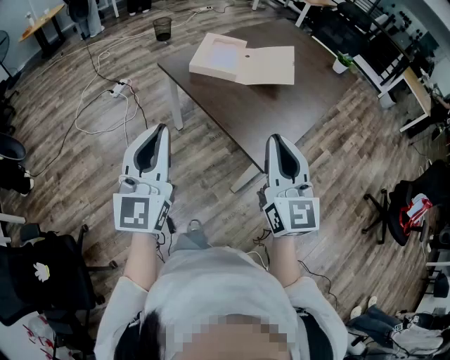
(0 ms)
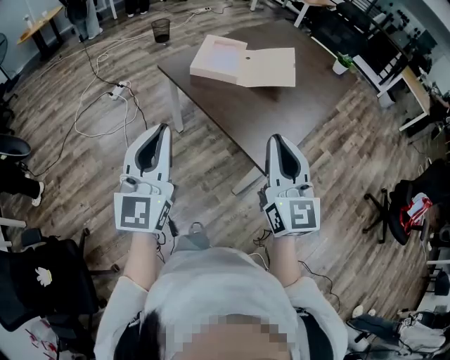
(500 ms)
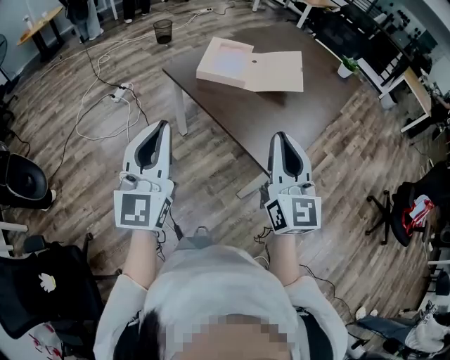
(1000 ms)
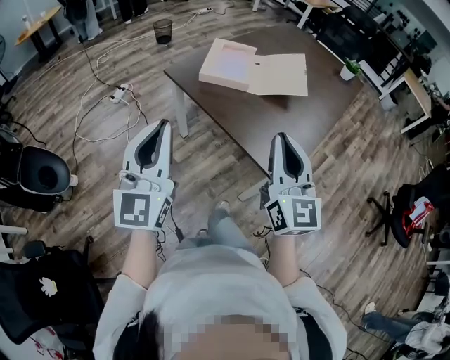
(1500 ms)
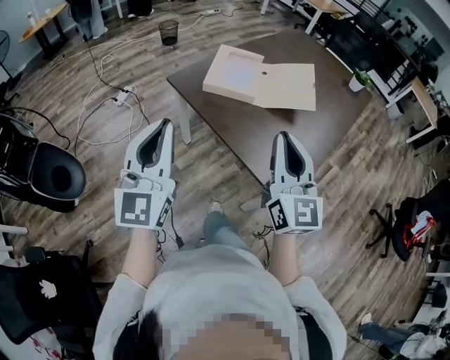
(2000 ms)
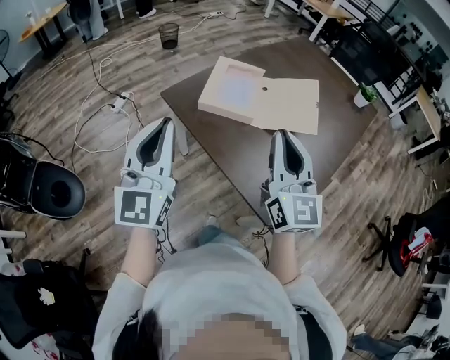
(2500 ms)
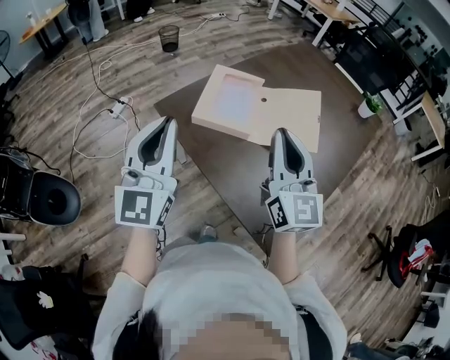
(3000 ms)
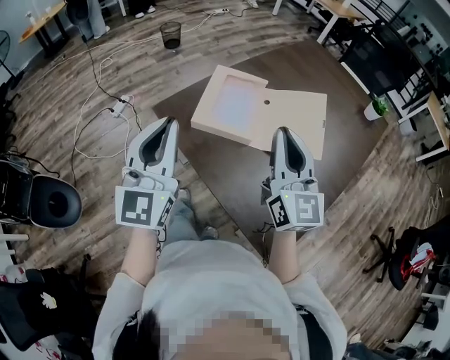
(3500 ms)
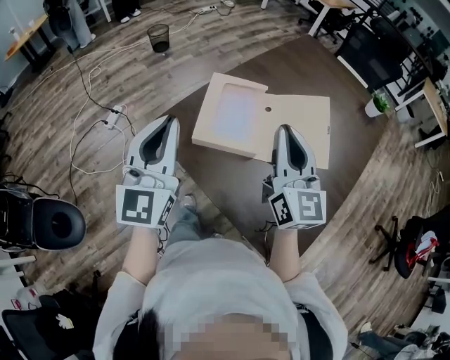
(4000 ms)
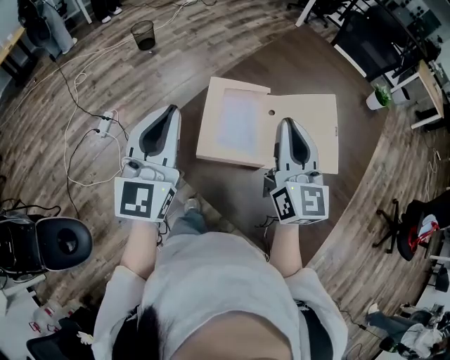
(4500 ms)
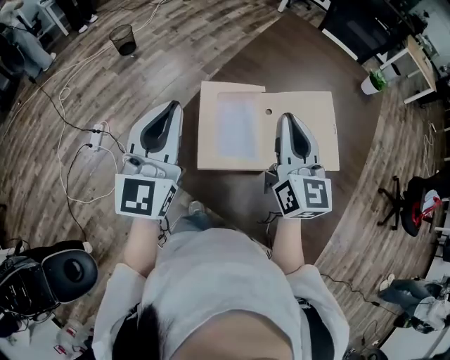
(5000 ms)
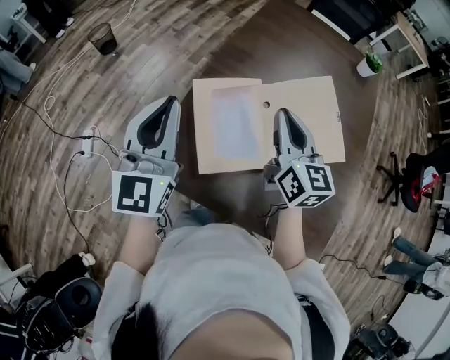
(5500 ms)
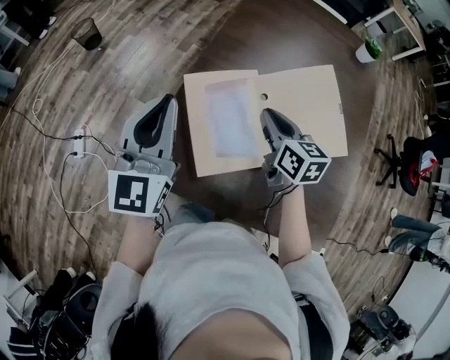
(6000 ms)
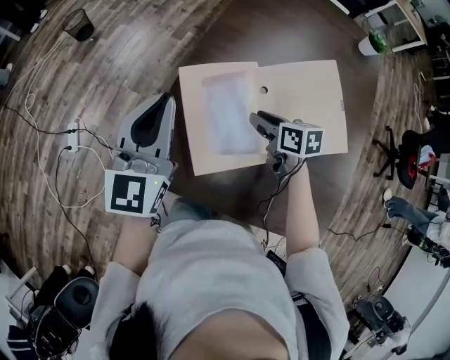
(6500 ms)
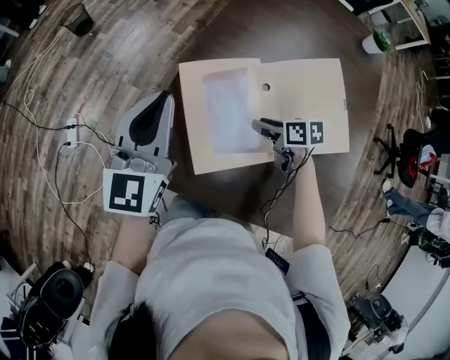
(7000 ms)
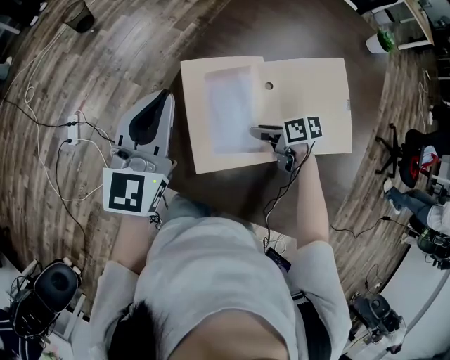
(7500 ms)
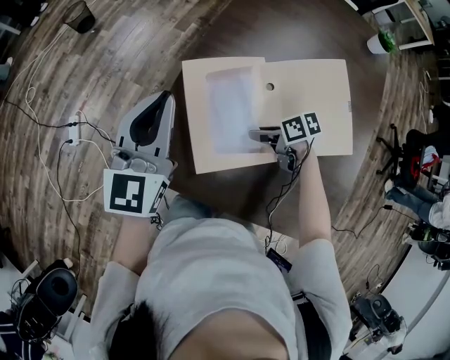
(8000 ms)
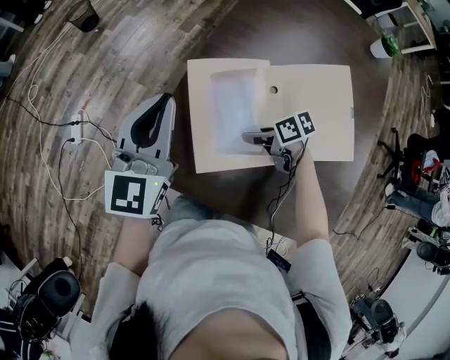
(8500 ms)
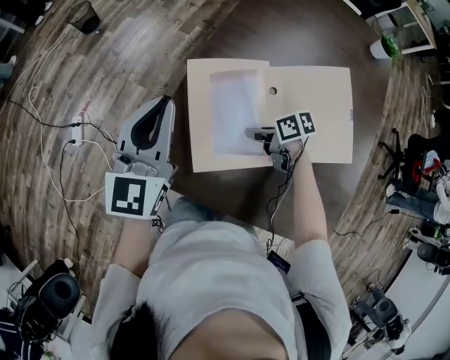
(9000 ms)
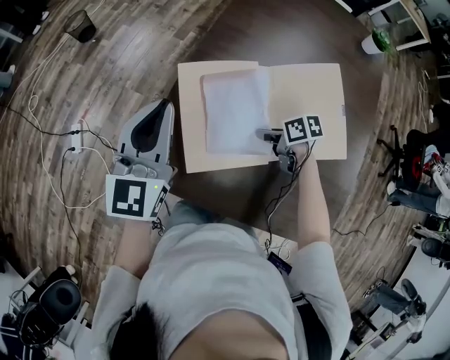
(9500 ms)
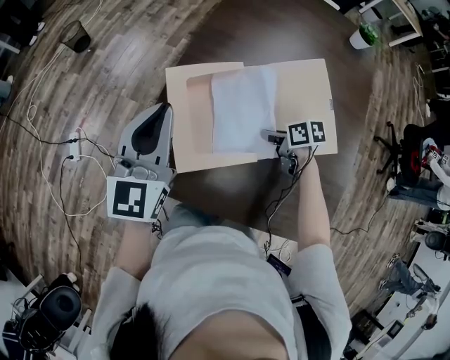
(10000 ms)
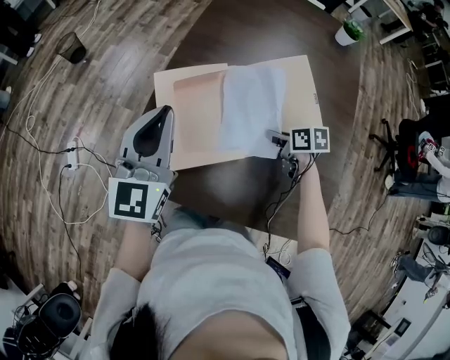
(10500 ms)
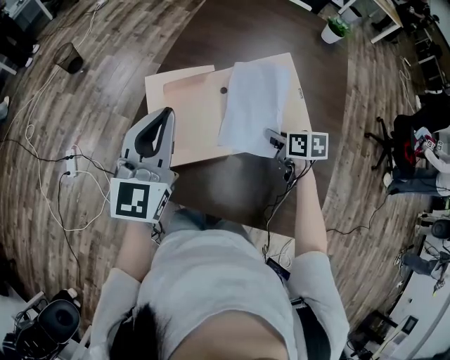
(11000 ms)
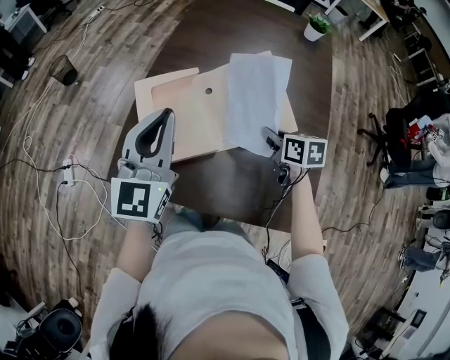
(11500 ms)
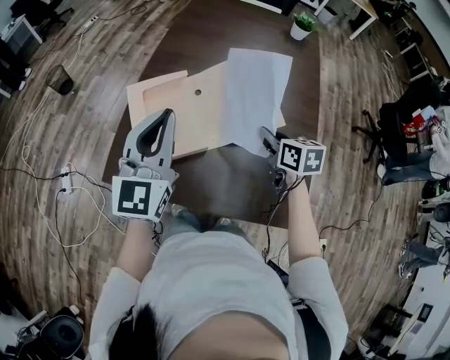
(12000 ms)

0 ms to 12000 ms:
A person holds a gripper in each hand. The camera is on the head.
0 ms to 2000 ms: The left gripper is displaced forward and to the left by roughly 15 cm. The right gripper travels forward by about 15 cm.
2000 ms to 4000 ms: The two grippers go some 35 cm forward.
4000 ms to 6000 ms: The right gripper heads forward and downward, covering some 30 cm, and points its fingers about 30 degrees further downward. The left gripper travels forward by approximately 30 cm, and rotates approximately 30 degrees.
6000 ms to 8000 ms: The left gripper moves about 5 cm. Meanwhile the right gripper heads downward, covering roughly 20 cm, turns by approximately 50 degrees, and opens up.
8000 ms to 10000 ms: The right gripper goes roughly 5 cm to the right, and closes.
10000 ms to 12000 ms: The left gripper changes place by approximately 20 cm. Meanwhile the right gripper moves upward, some 15 cm, and swivels roughly 40 degrees.

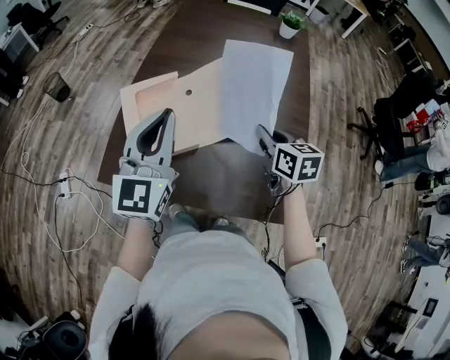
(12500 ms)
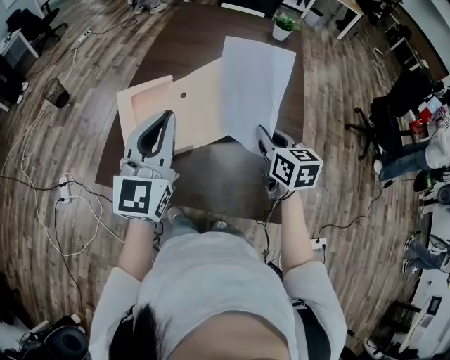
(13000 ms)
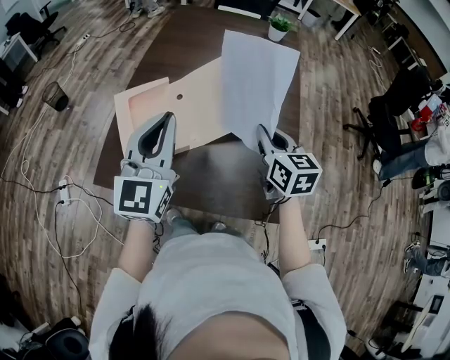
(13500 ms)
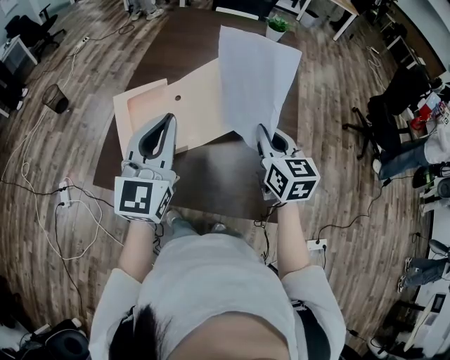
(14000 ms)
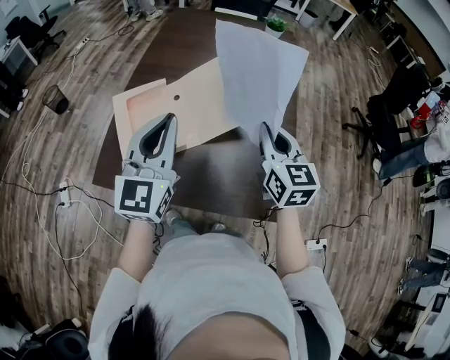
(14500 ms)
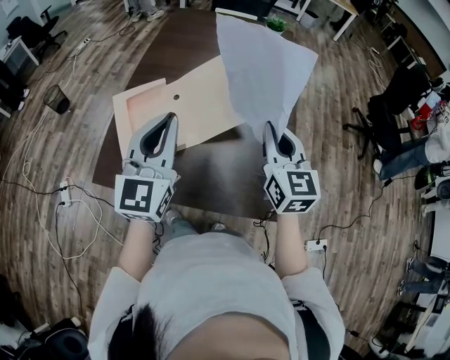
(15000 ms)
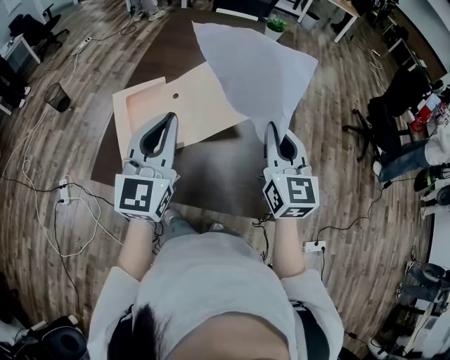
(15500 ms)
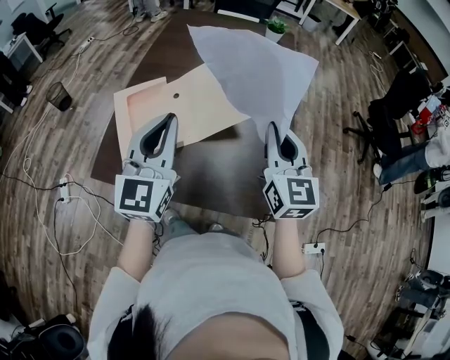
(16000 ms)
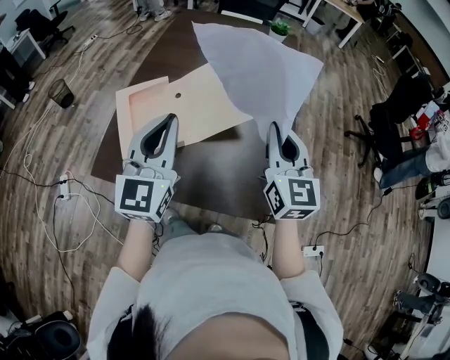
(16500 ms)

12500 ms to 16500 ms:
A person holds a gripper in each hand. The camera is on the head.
12500 ms to 14500 ms: The right gripper is displaced upward by roughly 10 cm, and turns by about 30 degrees; the left gripper shifts approximately 5 cm to the right.
14500 ms to 16500 ms: The right gripper ends up approximately 5 cm from where it was.

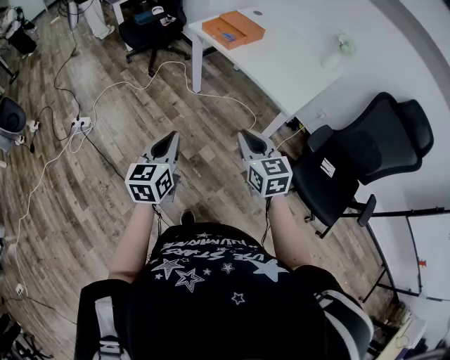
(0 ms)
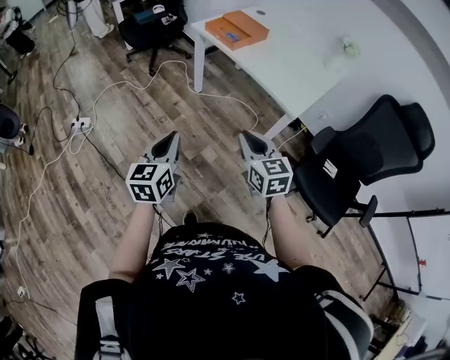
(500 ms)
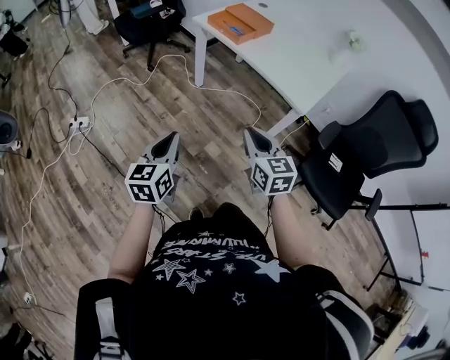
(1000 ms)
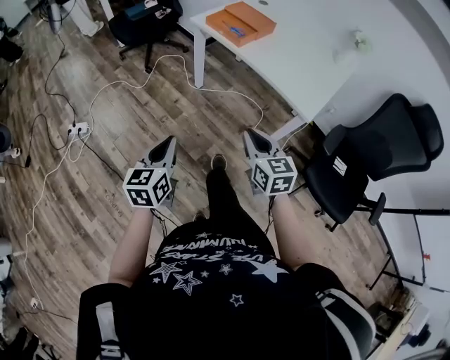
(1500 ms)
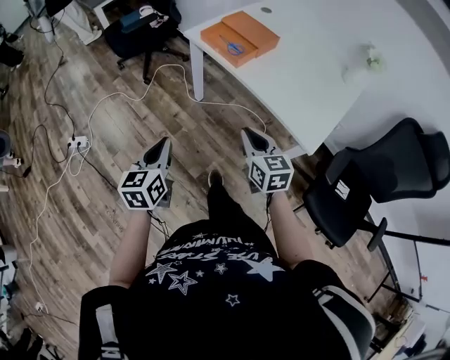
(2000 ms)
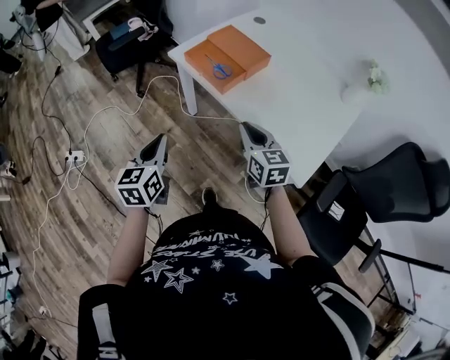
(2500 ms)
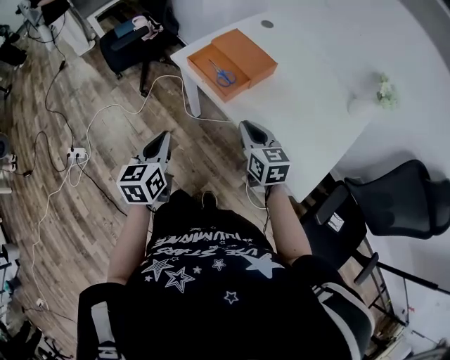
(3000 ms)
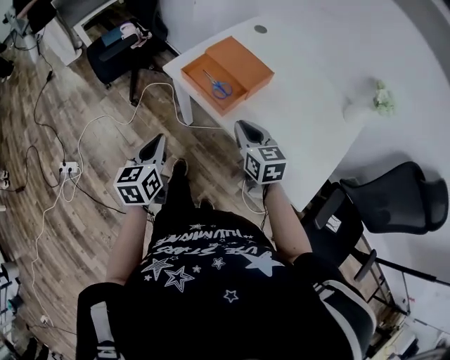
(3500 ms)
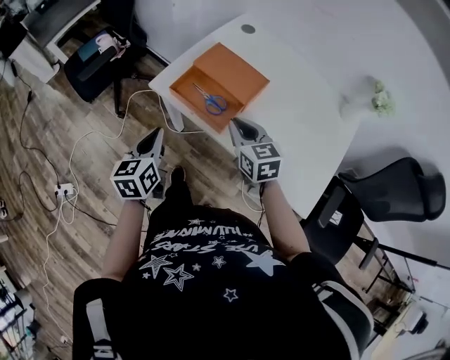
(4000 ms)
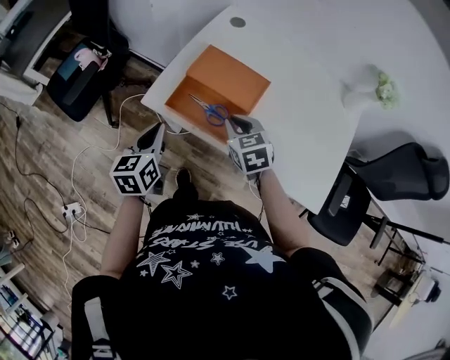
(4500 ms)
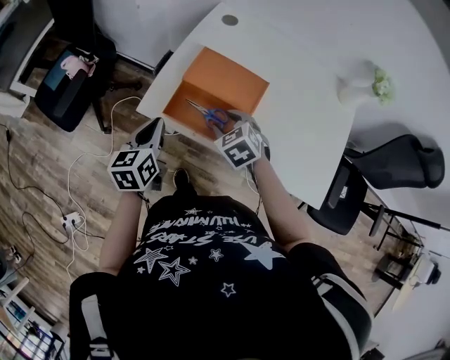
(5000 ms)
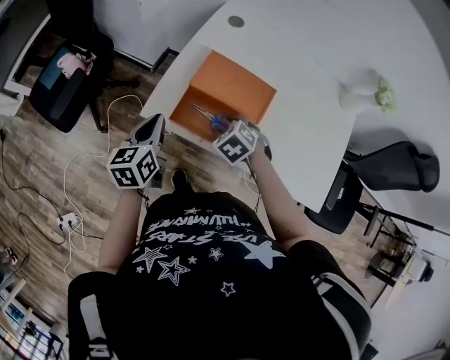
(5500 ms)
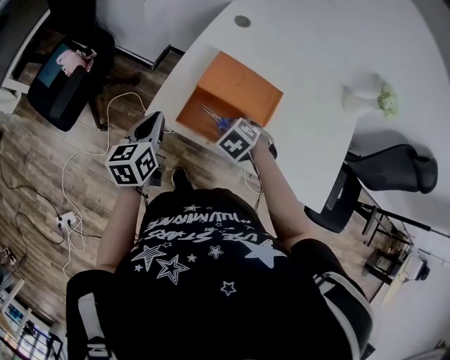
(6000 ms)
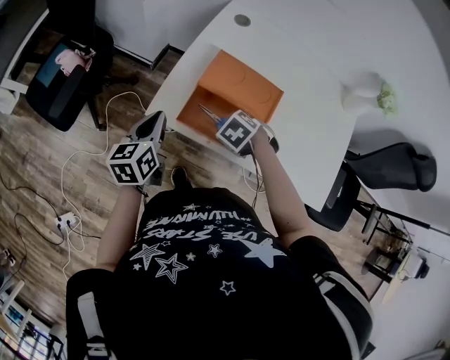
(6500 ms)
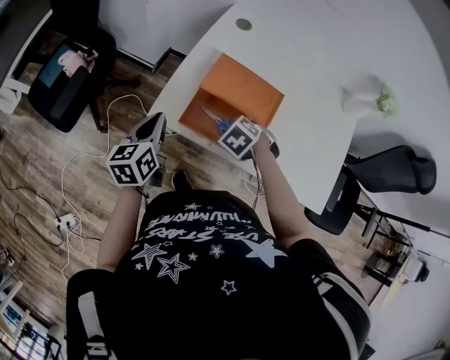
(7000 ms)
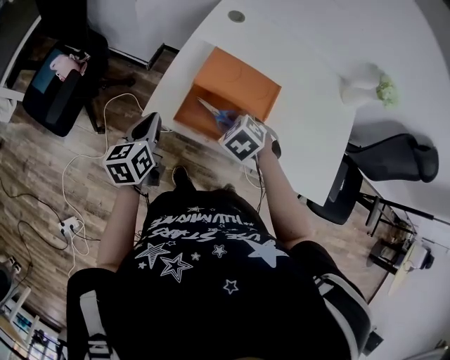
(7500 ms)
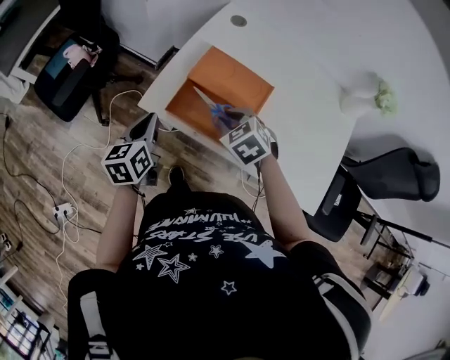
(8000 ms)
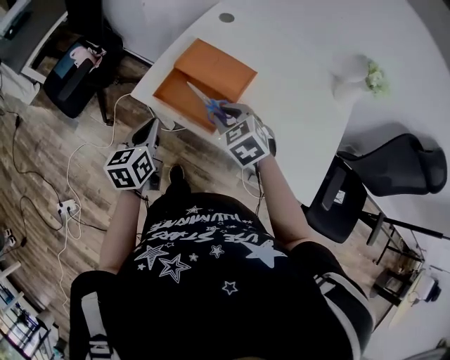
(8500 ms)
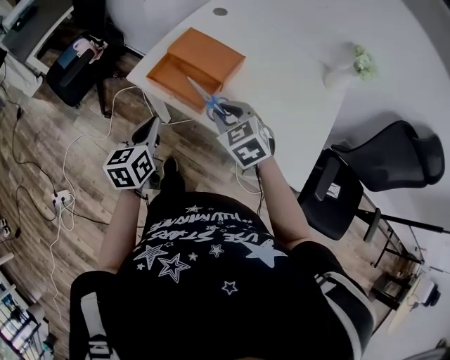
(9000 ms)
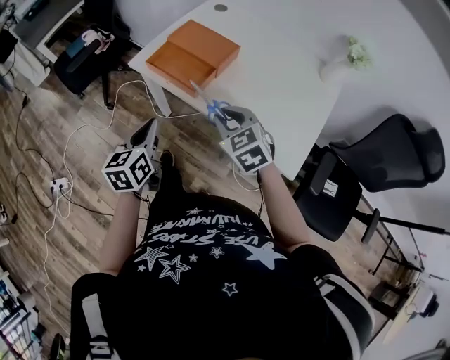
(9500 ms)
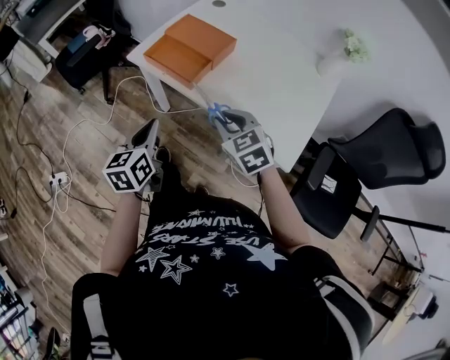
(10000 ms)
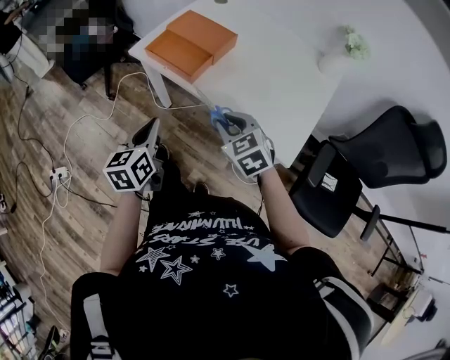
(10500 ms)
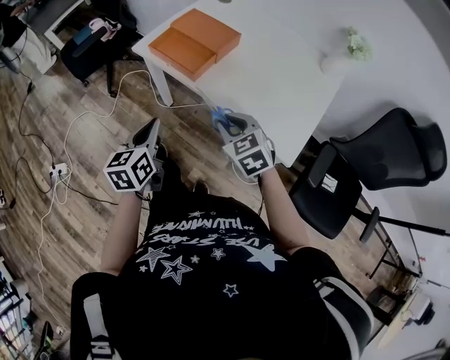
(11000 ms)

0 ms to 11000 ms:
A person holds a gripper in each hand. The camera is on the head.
0 ms to 2000 ms: Both grippers travel together forward, some 30 cm.
2000 ms to 3500 ms: The two grippers go about 30 cm forward.
3500 ms to 5500 ms: The right gripper shifts about 30 cm forward, downward and to the left, angles its fingers downward, by some 50 degrees, and opens up; the left gripper goes approximately 35 cm forward, and turns by about 20 degrees.
5500 ms to 7500 ms: The left gripper changes place by approximately 5 cm.
7500 ms to 9000 ms: The right gripper goes some 25 cm backward, upward and to the right, and points its fingers roughly 30 degrees further upward. Meanwhile the left gripper moves backward and to the right, approximately 30 cm.
9000 ms to 11000 ms: Both grippers travel together backward, some 20 cm.
